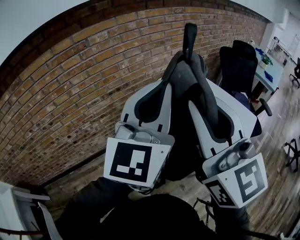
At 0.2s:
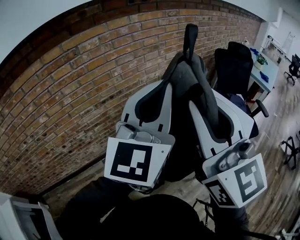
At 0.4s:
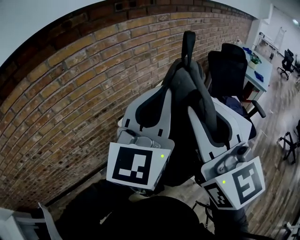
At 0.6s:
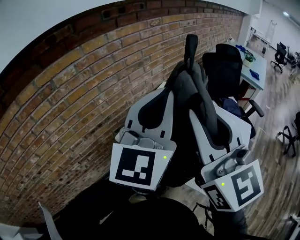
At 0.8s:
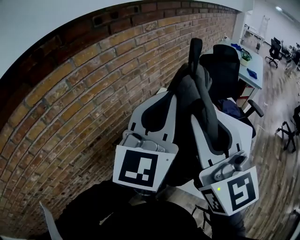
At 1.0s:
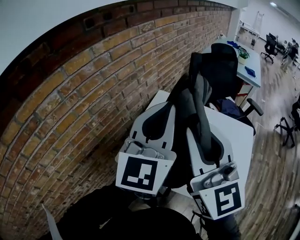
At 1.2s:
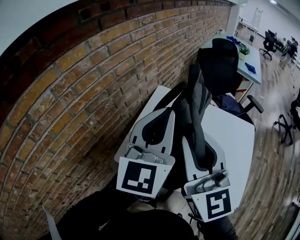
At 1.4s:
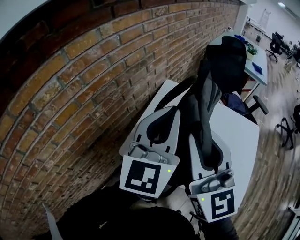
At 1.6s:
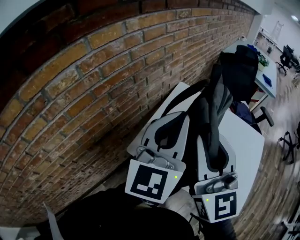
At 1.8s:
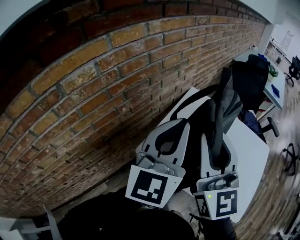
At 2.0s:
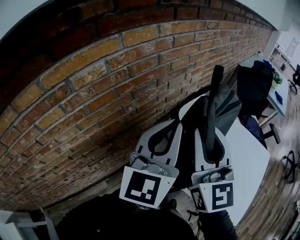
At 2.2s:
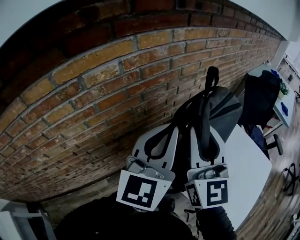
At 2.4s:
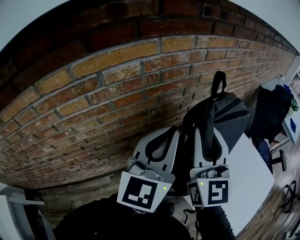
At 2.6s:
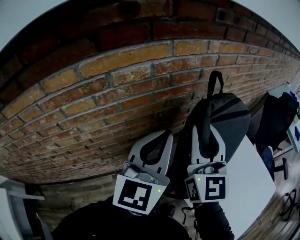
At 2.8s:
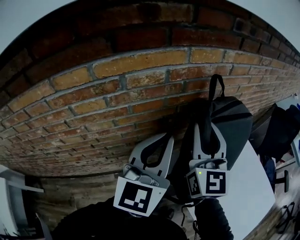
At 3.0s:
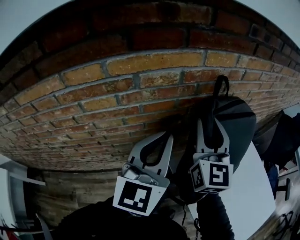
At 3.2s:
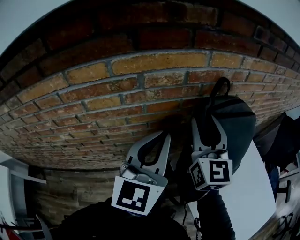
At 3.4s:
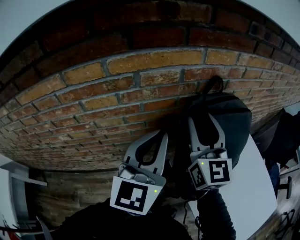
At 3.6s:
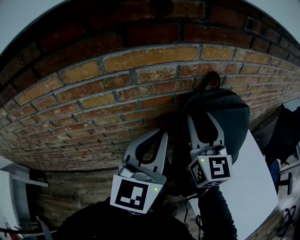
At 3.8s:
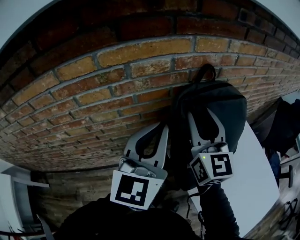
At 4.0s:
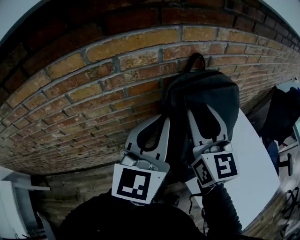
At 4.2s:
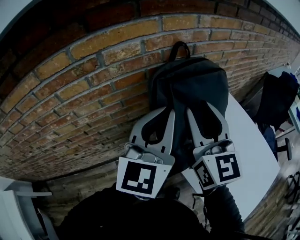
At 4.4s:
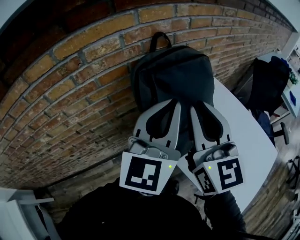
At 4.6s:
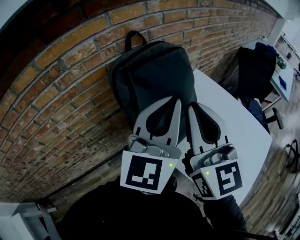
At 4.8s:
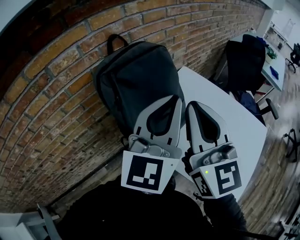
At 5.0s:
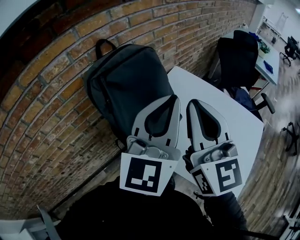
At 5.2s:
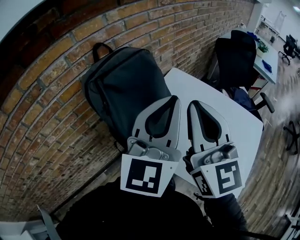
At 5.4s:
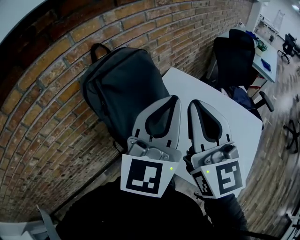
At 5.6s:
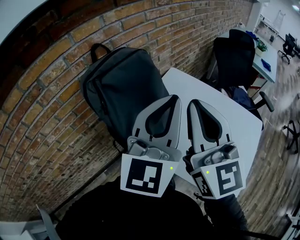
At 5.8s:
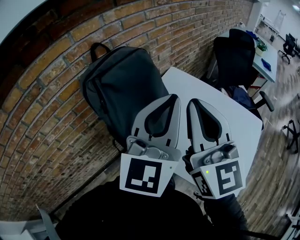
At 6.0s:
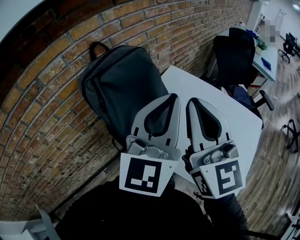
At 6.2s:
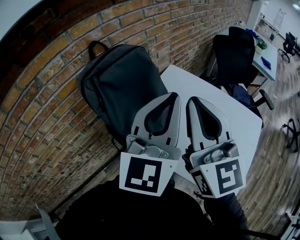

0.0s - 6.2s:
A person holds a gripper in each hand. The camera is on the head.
0.0s - 1.6s: Both grippers move forward, about 30 cm. The right gripper swivels some 20 degrees.
1.6s - 3.2s: The right gripper shifts by approximately 25 cm, and rotates approximately 30 degrees. The left gripper moves about 25 cm, and rotates roughly 40 degrees.
3.2s - 4.6s: The right gripper goes about 20 cm backward and to the right, and closes, while the left gripper goes approximately 20 cm to the right, and turns by some 20 degrees.
4.6s - 6.2s: The grippers both shift to the right by approximately 10 cm.

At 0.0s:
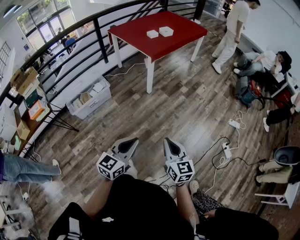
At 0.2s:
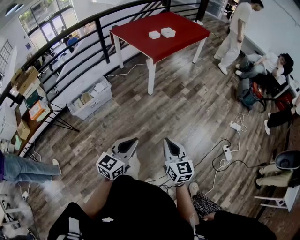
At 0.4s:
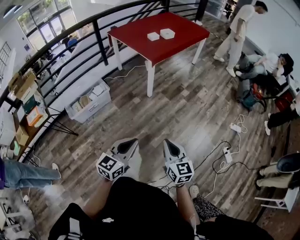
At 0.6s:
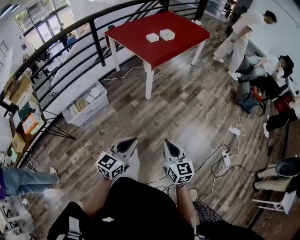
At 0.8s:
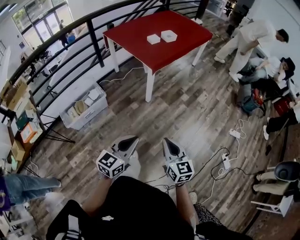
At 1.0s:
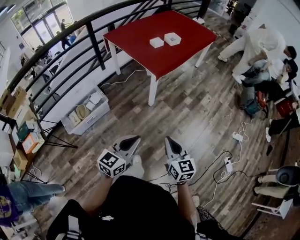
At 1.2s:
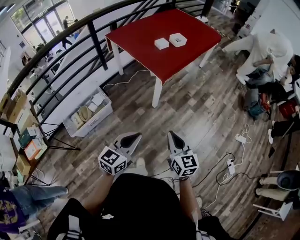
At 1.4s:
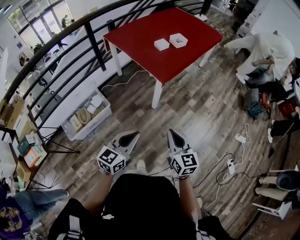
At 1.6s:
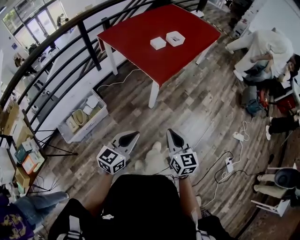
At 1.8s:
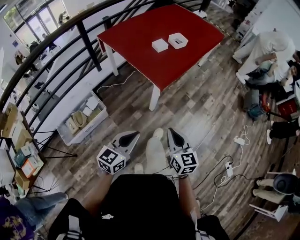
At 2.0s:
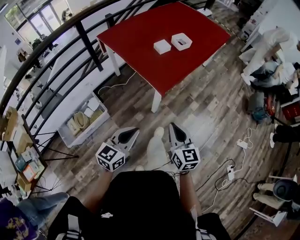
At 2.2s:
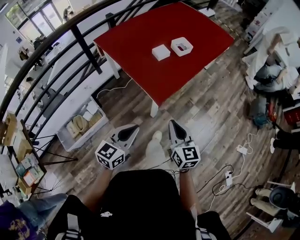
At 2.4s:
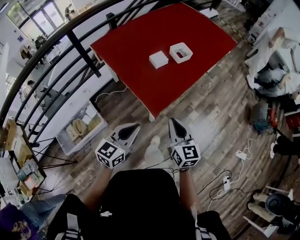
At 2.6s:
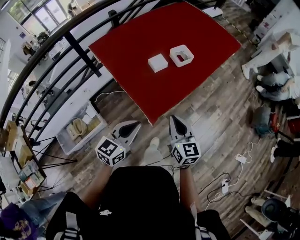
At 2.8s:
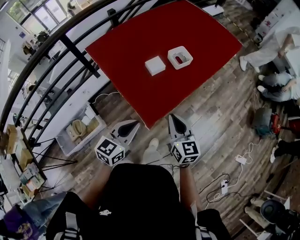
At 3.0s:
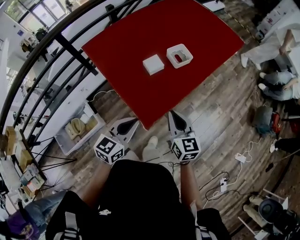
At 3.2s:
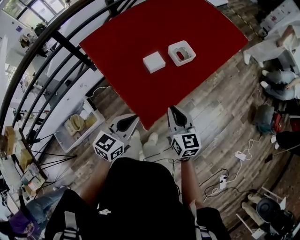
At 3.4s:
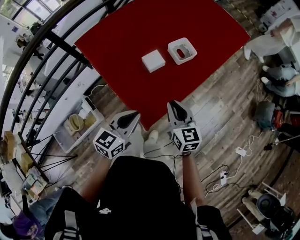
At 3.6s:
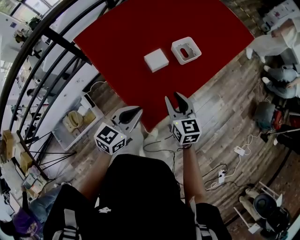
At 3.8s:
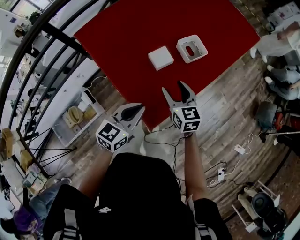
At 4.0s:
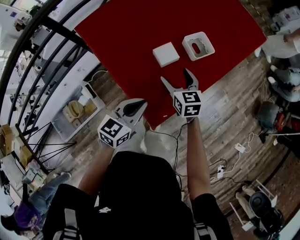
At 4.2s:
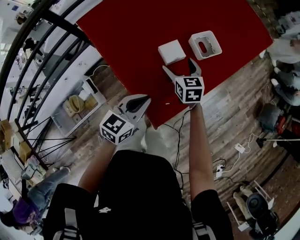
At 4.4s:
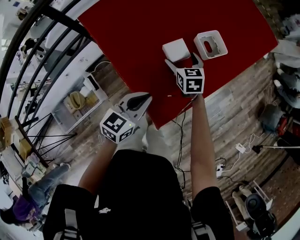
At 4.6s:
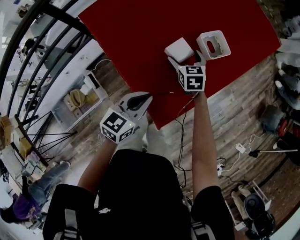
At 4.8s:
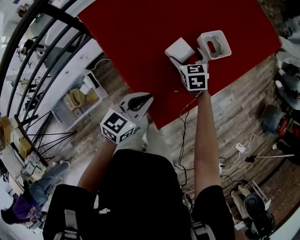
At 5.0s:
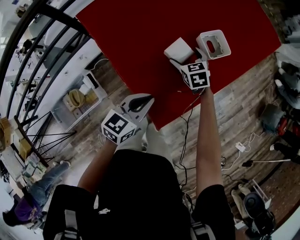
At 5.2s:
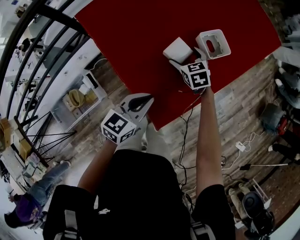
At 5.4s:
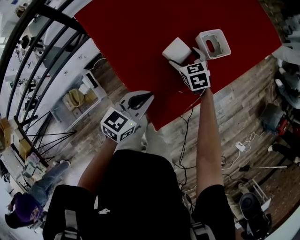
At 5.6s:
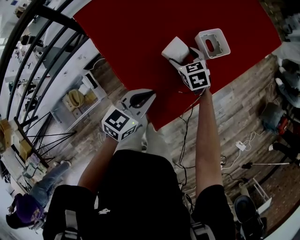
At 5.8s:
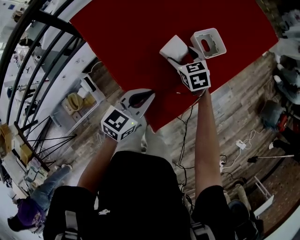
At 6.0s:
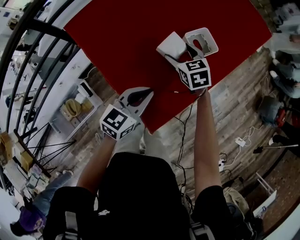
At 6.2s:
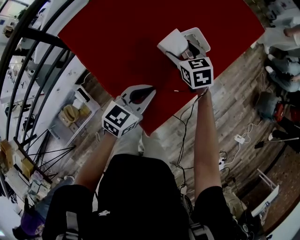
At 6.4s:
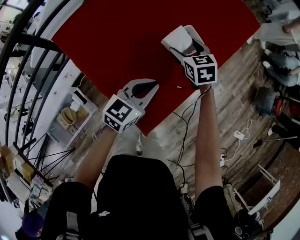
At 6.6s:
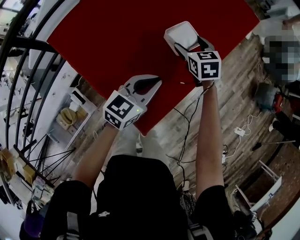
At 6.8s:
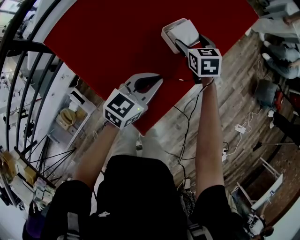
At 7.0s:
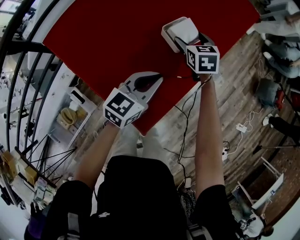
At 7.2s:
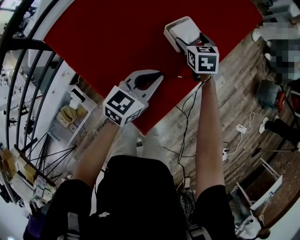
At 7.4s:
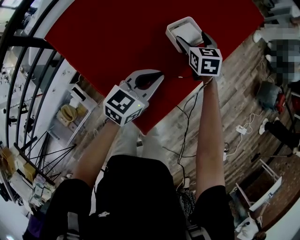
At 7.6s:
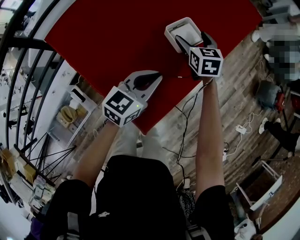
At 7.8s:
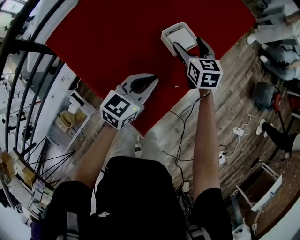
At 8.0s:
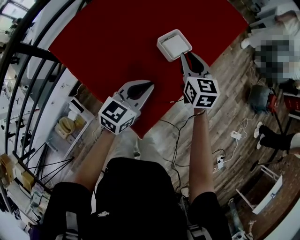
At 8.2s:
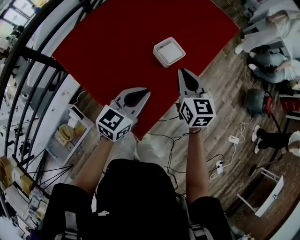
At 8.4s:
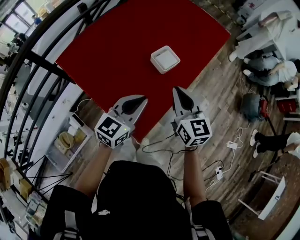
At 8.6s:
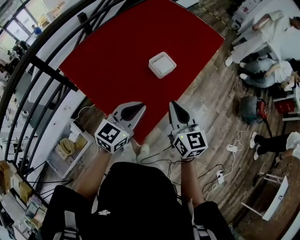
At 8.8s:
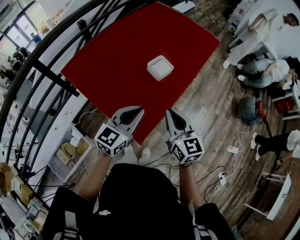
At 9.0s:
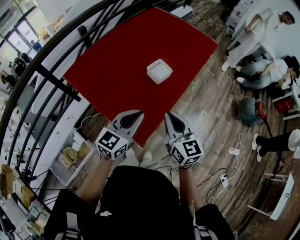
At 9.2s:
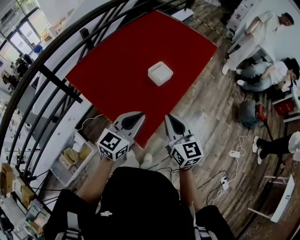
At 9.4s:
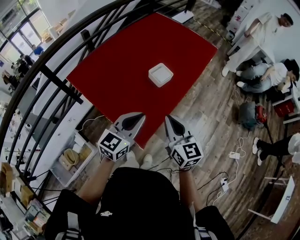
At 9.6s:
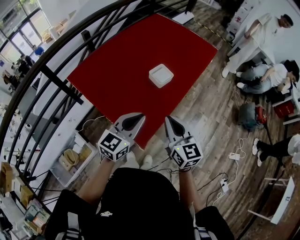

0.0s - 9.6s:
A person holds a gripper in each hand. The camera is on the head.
0.0s - 1.6s: The pair of grippers is taken forward, roughly 40 cm.
1.6s - 3.2s: The two grippers travel together, forward, some 50 cm.
3.2s - 4.8s: The right gripper shifts approximately 35 cm forward, downward and to the left, changes its angle by roughly 30 degrees, and opens up. The left gripper heads forward, downward and to the left, covering roughly 15 cm.
4.8s - 6.4s: The right gripper travels to the right, upward and forward by about 15 cm. The left gripper is displaced forward and to the right by some 15 cm.
6.4s - 8.0s: The right gripper goes approximately 10 cm upward and to the right, turns by about 20 degrees, and closes its fingers.
8.0s - 9.6s: The right gripper shifts some 30 cm backward and upward; the left gripper heads backward and upward, covering some 20 cm.

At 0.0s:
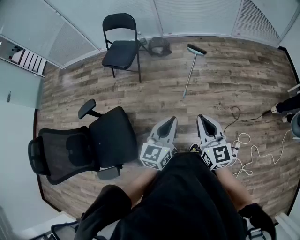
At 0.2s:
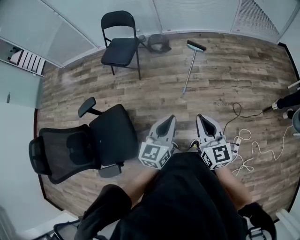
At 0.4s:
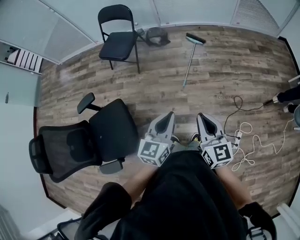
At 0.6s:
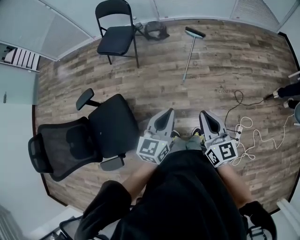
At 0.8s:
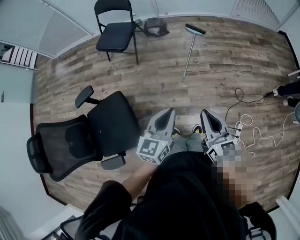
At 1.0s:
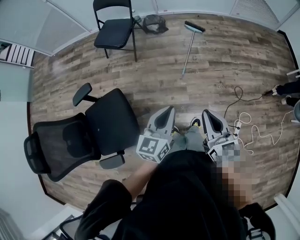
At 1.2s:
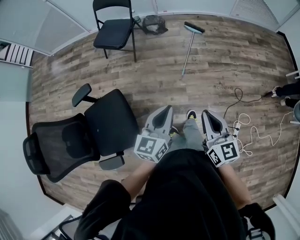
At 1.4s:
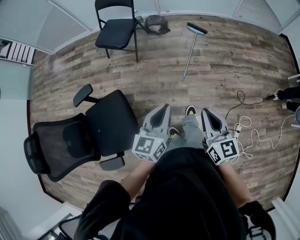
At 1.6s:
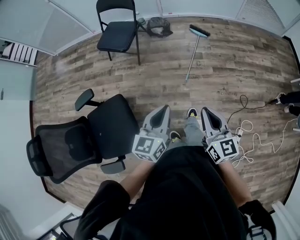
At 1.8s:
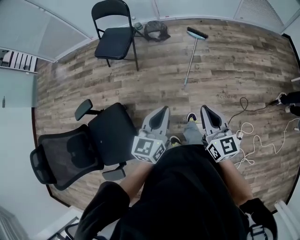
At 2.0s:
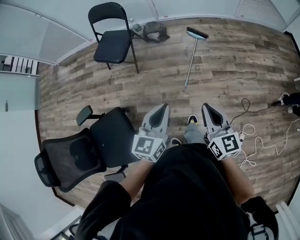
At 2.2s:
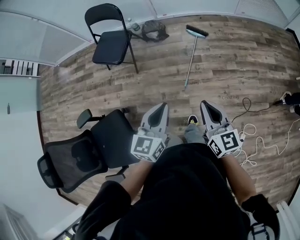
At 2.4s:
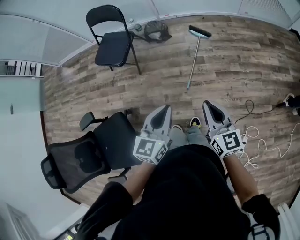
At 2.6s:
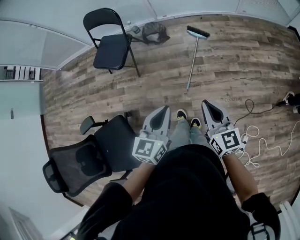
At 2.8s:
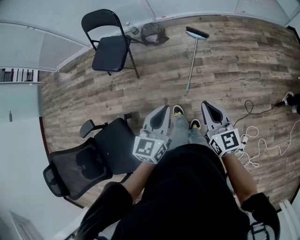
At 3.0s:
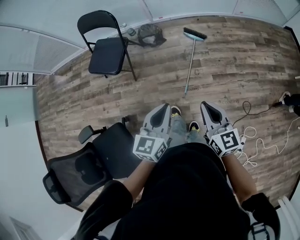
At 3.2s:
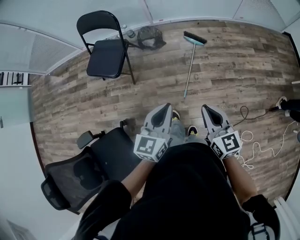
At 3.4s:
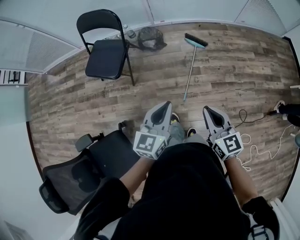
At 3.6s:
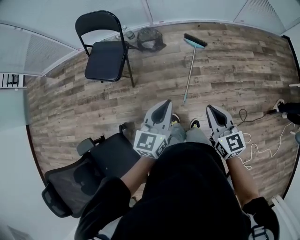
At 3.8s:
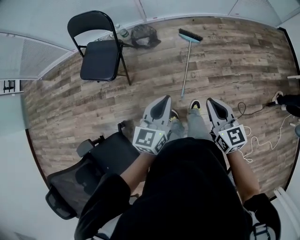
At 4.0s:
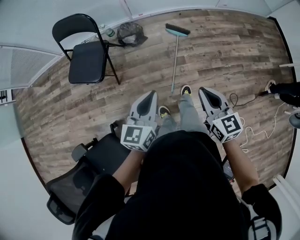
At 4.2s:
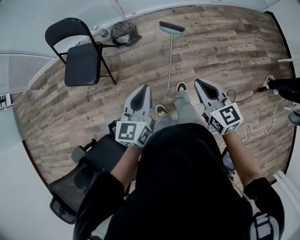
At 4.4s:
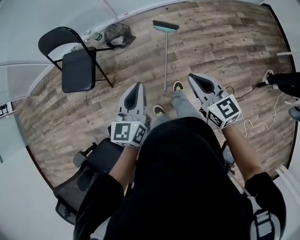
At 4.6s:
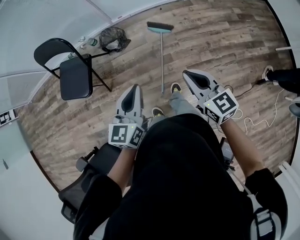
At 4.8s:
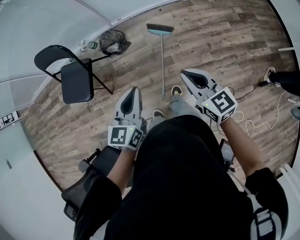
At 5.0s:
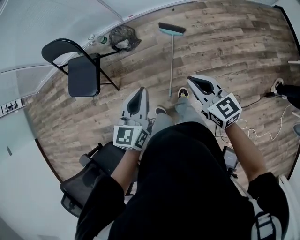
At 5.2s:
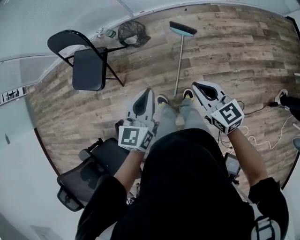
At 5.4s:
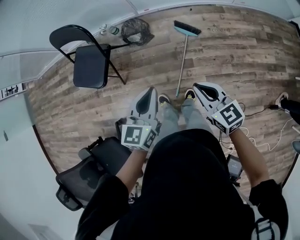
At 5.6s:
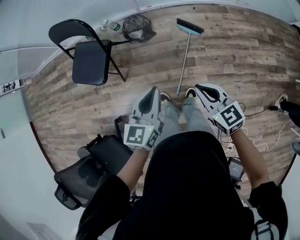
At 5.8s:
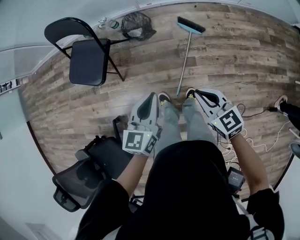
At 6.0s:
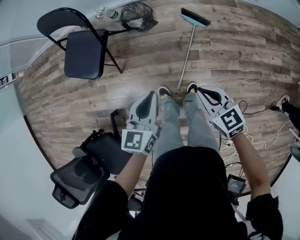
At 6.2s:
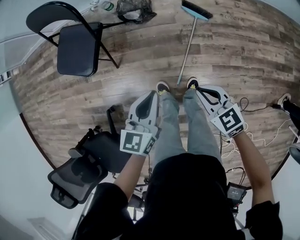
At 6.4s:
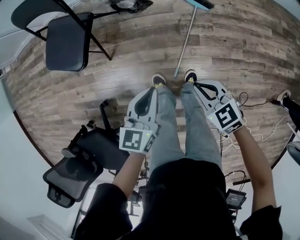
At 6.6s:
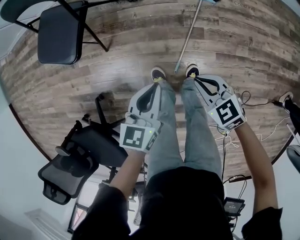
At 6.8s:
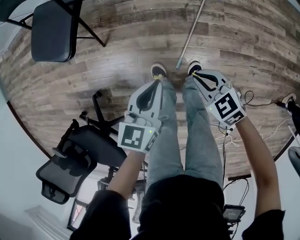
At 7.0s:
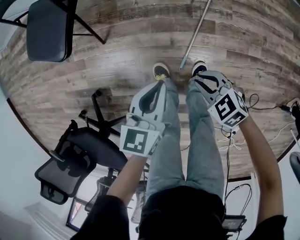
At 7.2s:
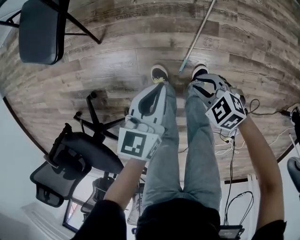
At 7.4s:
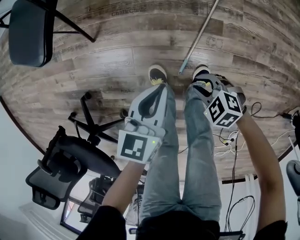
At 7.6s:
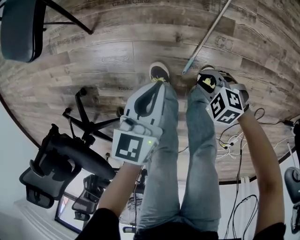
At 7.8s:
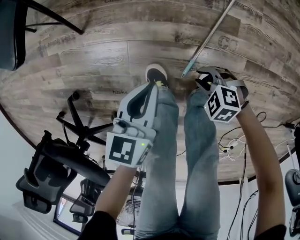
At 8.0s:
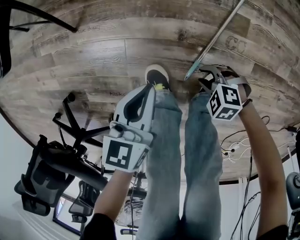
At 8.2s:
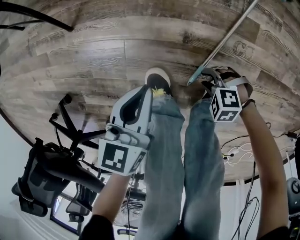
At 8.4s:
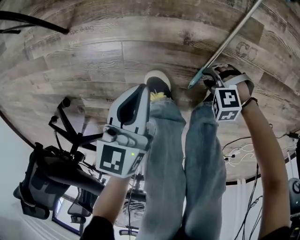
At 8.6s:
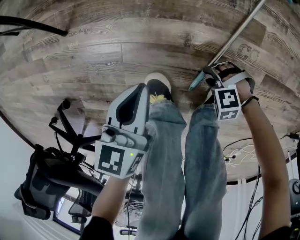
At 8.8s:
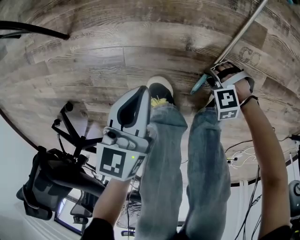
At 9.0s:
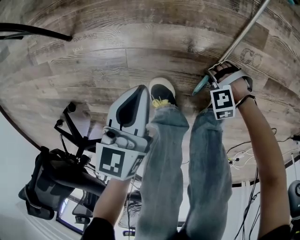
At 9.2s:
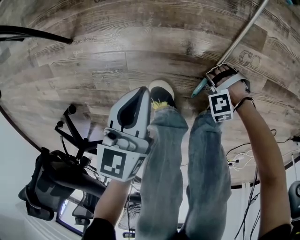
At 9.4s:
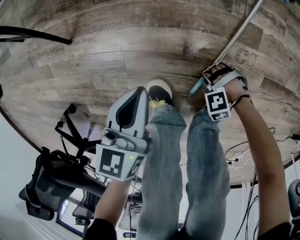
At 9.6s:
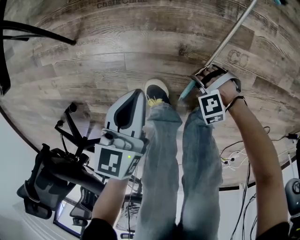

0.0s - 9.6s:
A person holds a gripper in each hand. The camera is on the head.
0.0s - 1.6s: The left gripper moves to the left and forward, approximately 10 cm; the right gripper ends up roughly 5 cm from where it was.
1.6s - 3.2s: The grippers both shift forward by roughly 30 cm.
3.2s - 4.8s: Both grippers travel together forward and to the right, approximately 25 cm.
4.8s - 6.4s: The grippers both shift downward and to the left by roughly 30 cm. The right gripper swivels about 40 degrees.
6.4s - 8.0s: Both grippers move downward, approximately 50 cm. The right gripper changes its angle by about 50 degrees, and opens its fingers.
8.0s - 9.6s: The right gripper travels downward by some 5 cm, and rotates approximately 30 degrees.
